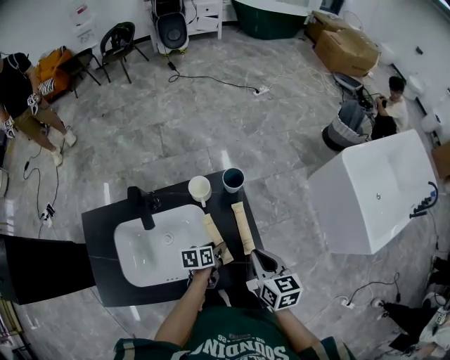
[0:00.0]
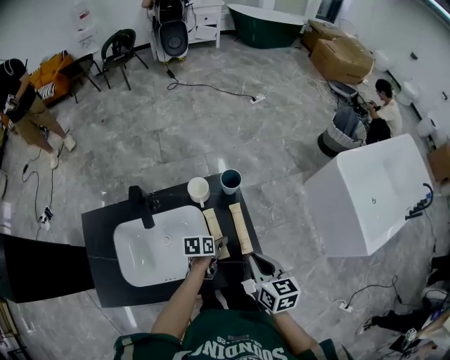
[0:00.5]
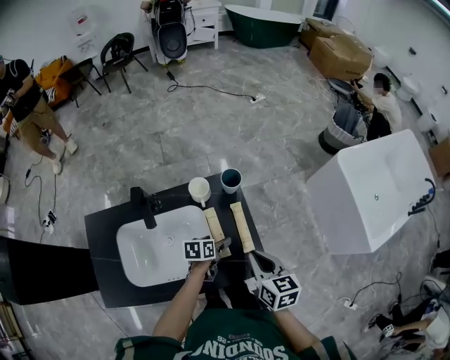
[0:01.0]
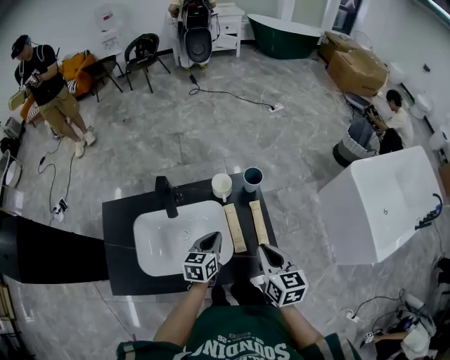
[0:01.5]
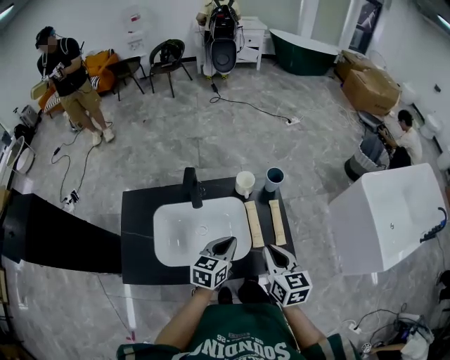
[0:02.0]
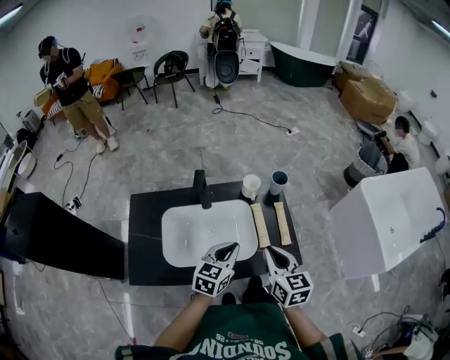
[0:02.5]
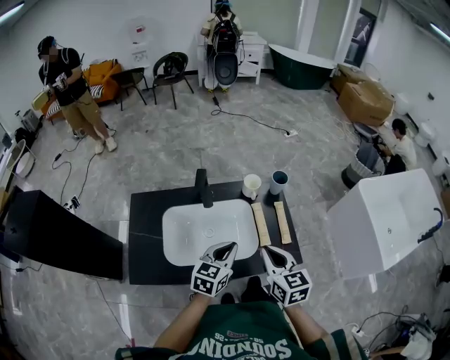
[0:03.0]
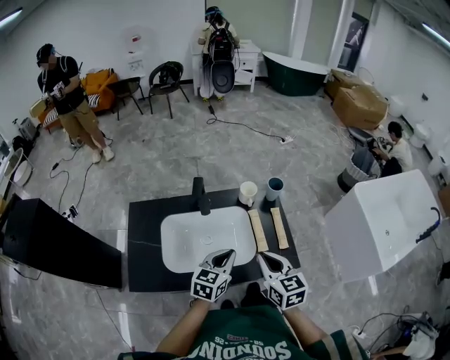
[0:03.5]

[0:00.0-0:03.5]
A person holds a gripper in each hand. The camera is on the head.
0:00.0 to 0:02.0: The left gripper is displaced upward, backward and to the left by some 25 cm, changes its angle by roughly 40 degrees, and closes. Meanwhile the right gripper heads to the left, backward and upward, covering about 15 cm.
0:02.0 to 0:03.5: The right gripper is displaced to the left and backward by roughly 10 cm. The left gripper shifts approximately 5 cm backward.

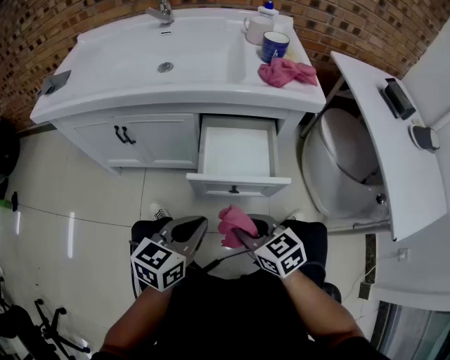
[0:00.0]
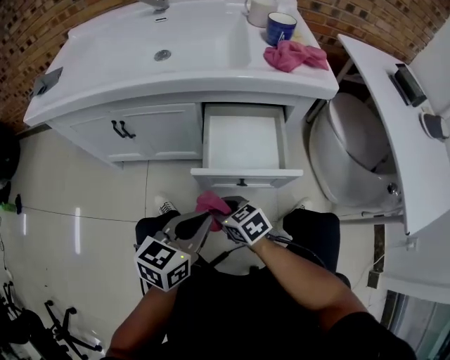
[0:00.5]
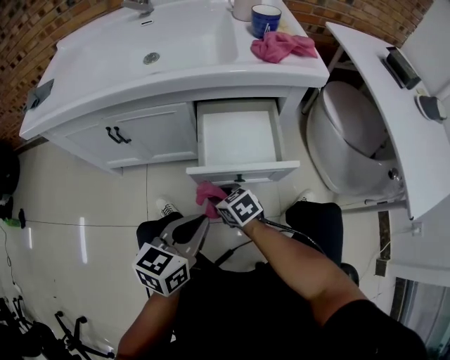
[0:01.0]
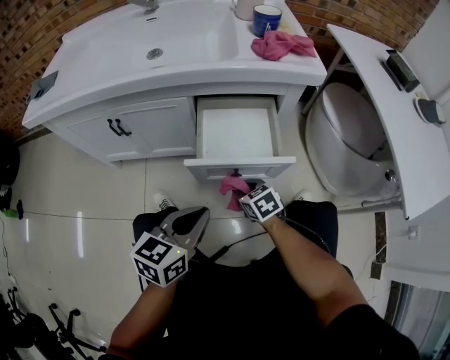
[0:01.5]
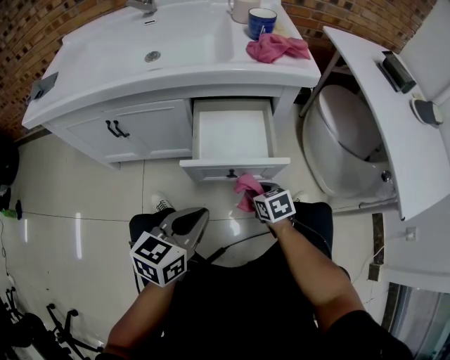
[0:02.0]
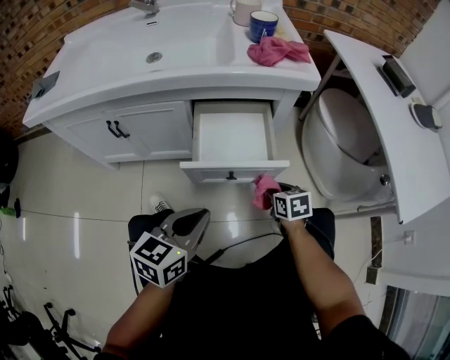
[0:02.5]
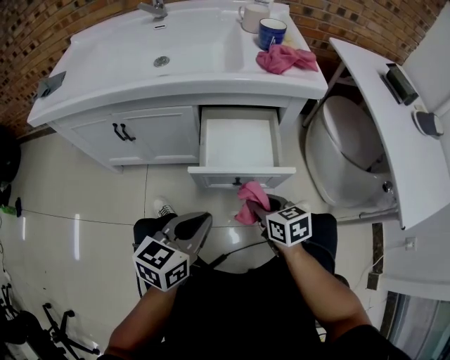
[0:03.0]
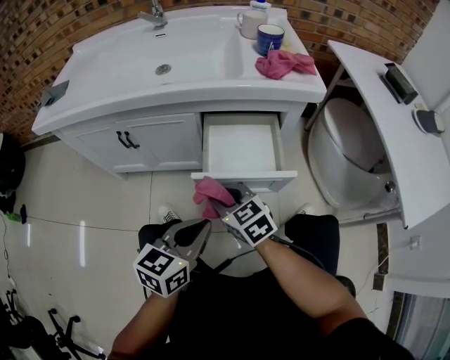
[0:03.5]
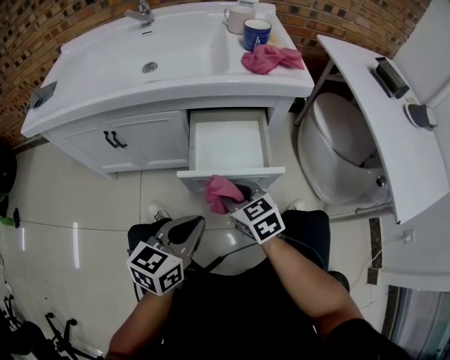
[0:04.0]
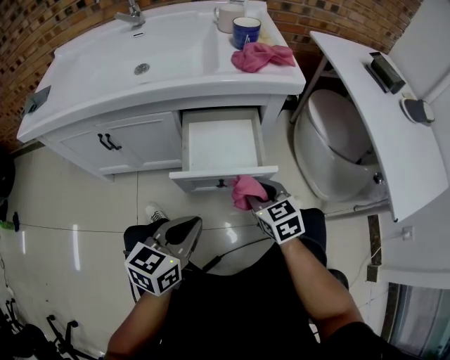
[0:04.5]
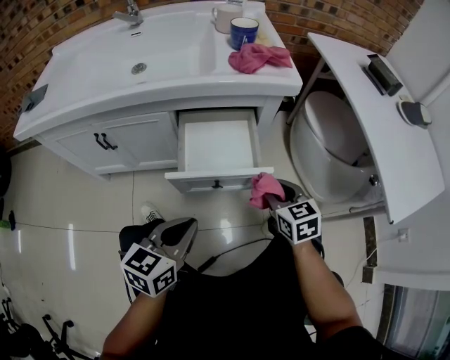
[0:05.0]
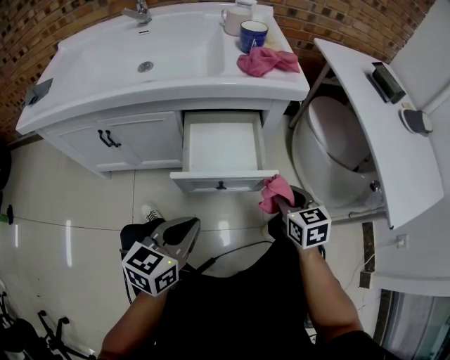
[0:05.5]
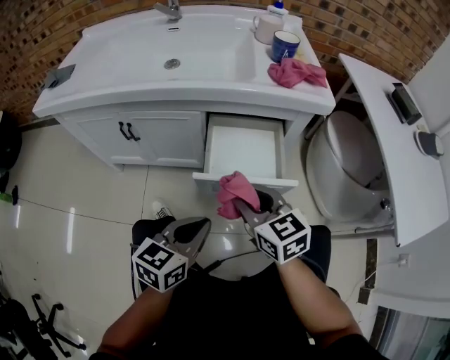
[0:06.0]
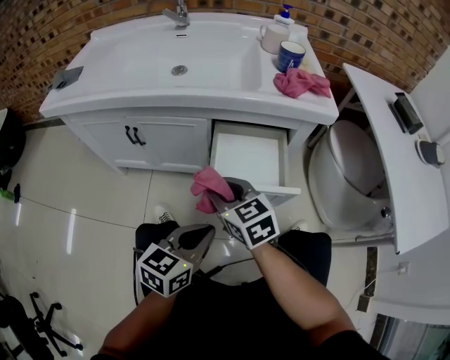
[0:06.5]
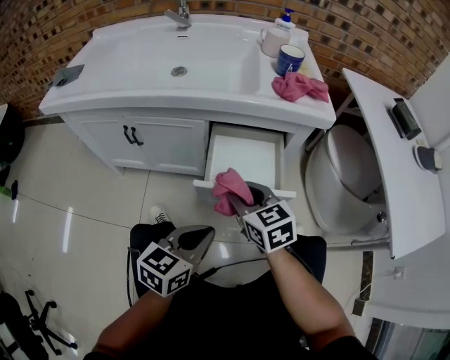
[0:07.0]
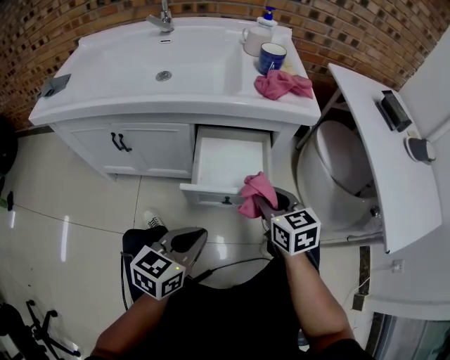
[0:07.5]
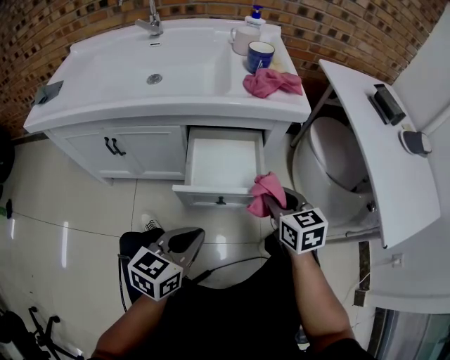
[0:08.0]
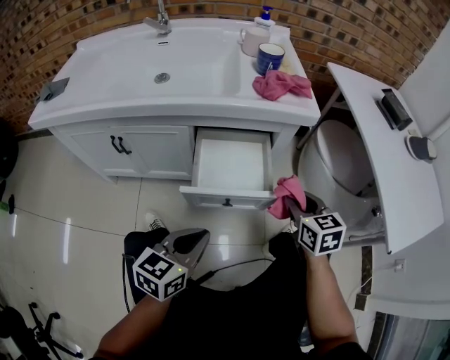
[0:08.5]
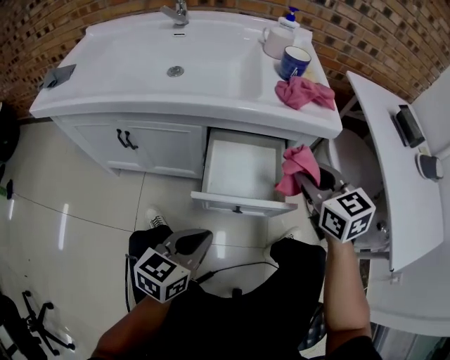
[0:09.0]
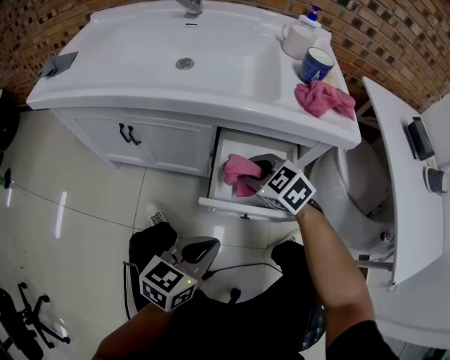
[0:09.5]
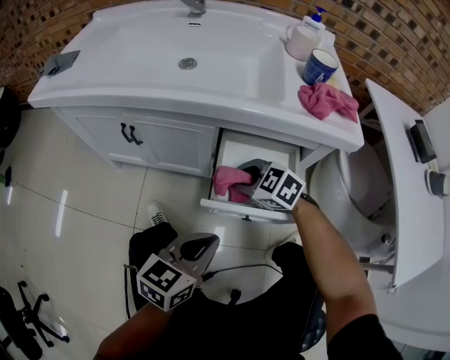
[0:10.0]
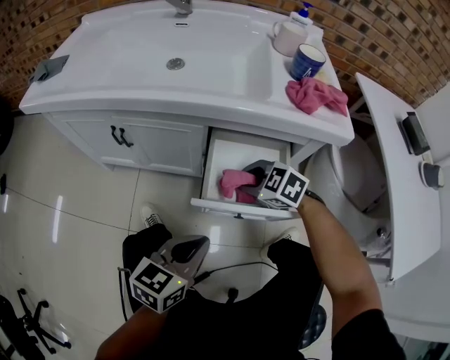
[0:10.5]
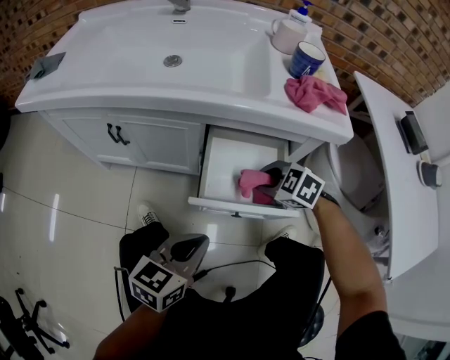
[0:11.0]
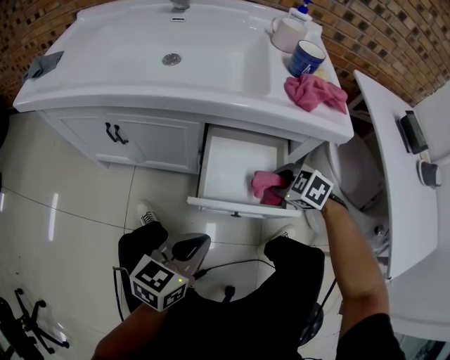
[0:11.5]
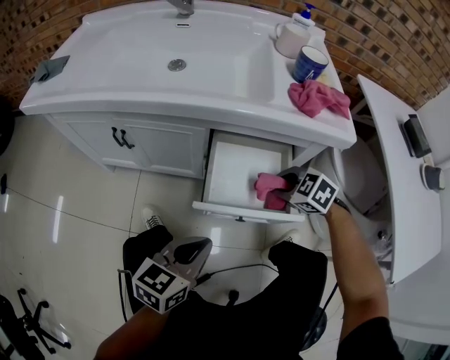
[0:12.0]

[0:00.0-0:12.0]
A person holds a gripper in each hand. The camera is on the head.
0:00.0 to 0:02.0: The right gripper moves downward, forward and to the right, roughly 20 cm, and turns by about 20 degrees.
0:02.0 to 0:04.0: The right gripper moves left and right over some 20 cm, changing direction 2 times, and rotates some 20 degrees.
0:04.0 to 0:06.0: The right gripper heads upward, covering some 10 cm, and reaches some 20 cm to the right, then returns.
0:06.0 to 0:08.0: The right gripper shifts roughly 15 cm to the right.
0:08.0 to 0:10.0: The right gripper changes place by about 25 cm, and swivels approximately 60 degrees. The left gripper moves roughly 5 cm.
0:10.0 to 0:12.0: The right gripper is displaced to the right by roughly 15 cm.

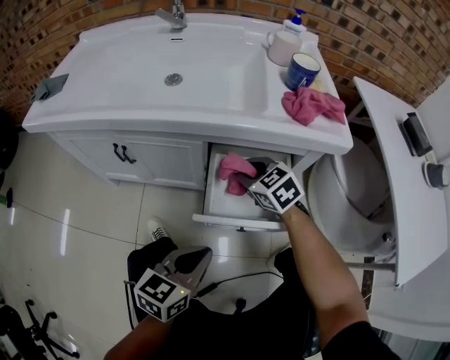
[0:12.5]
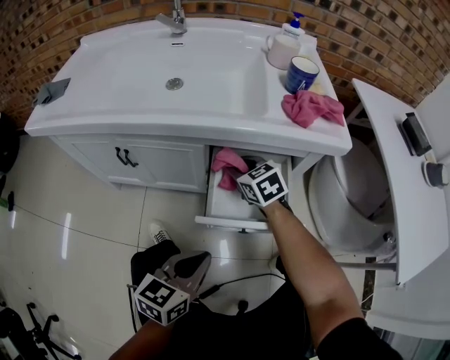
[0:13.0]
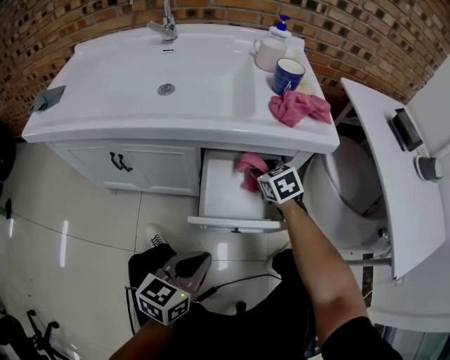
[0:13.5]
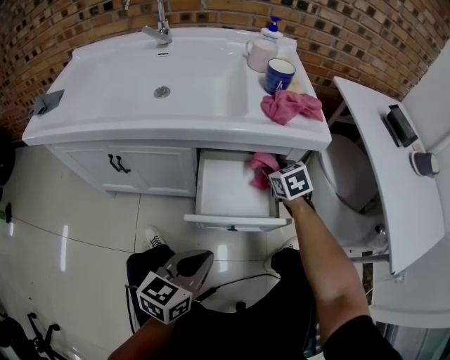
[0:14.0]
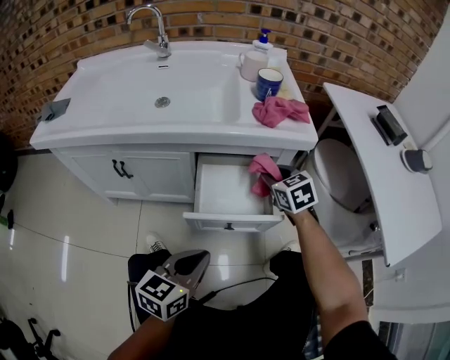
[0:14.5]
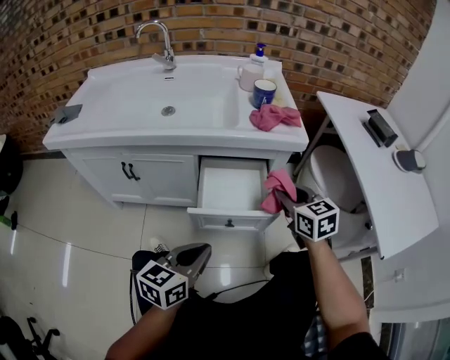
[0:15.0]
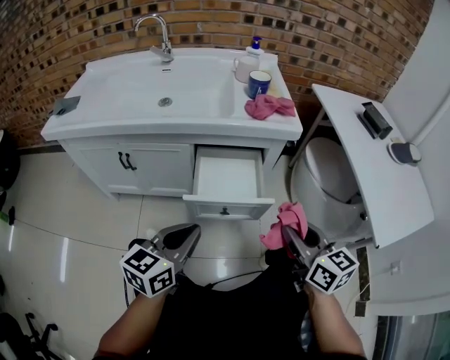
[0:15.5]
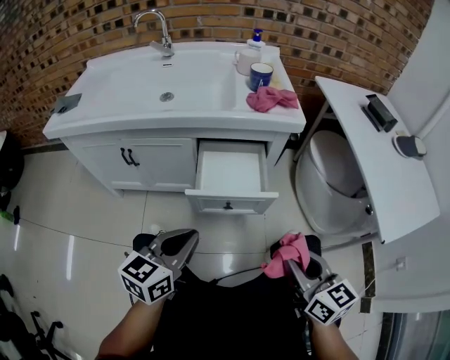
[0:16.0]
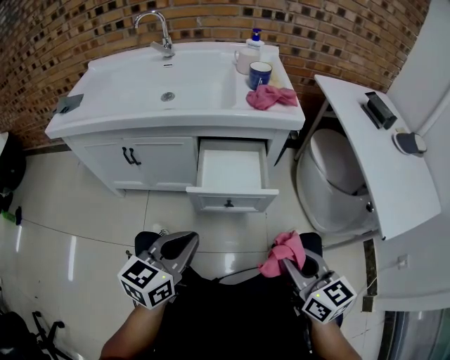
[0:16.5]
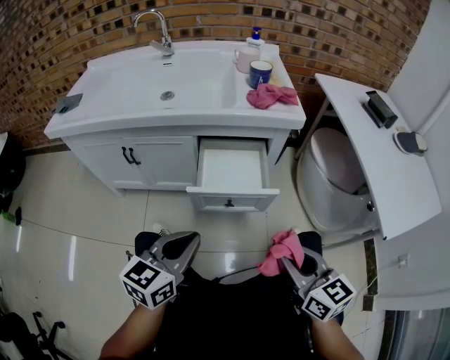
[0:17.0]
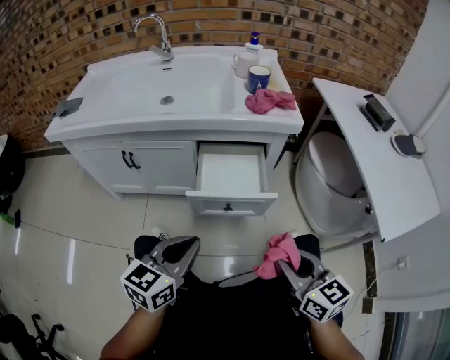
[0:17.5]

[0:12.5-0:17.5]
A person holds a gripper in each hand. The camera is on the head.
0:12.5 to 0:15.0: The right gripper goes roughly 20 cm to the right, upward and backward, and rotates some 30 degrees. The left gripper ends up about 5 cm from where it was.
0:15.0 to 0:17.5: The right gripper is displaced backward by some 25 cm. The left gripper changes place by approximately 5 cm.

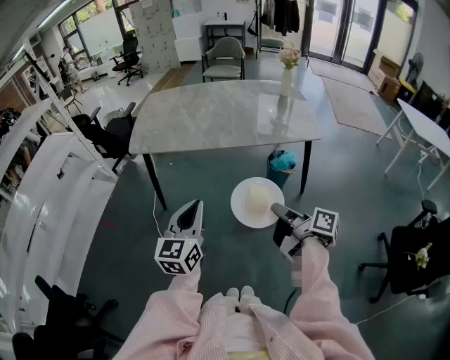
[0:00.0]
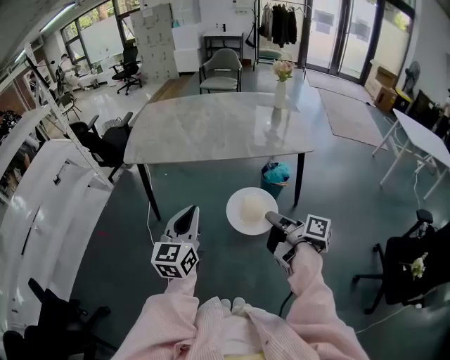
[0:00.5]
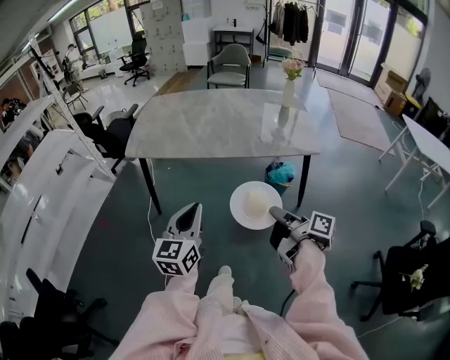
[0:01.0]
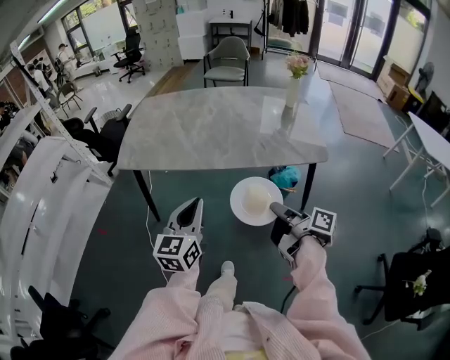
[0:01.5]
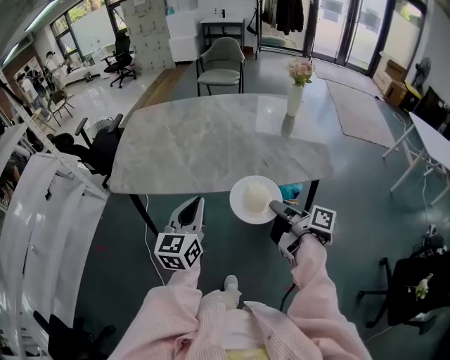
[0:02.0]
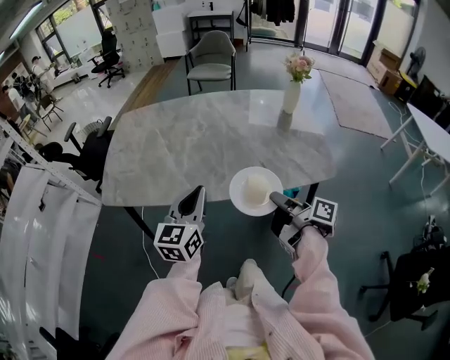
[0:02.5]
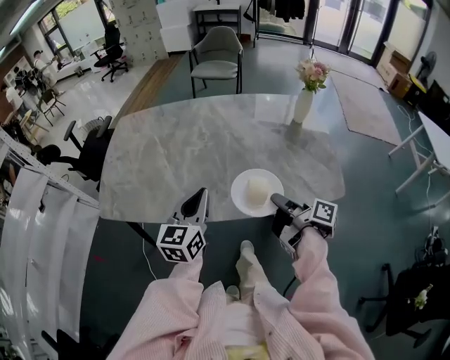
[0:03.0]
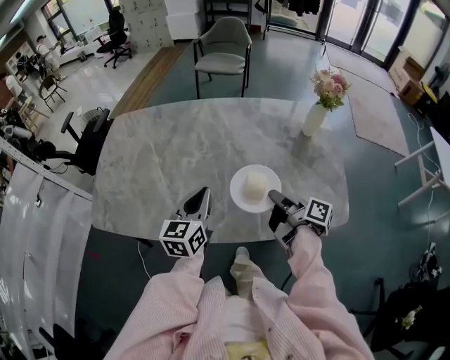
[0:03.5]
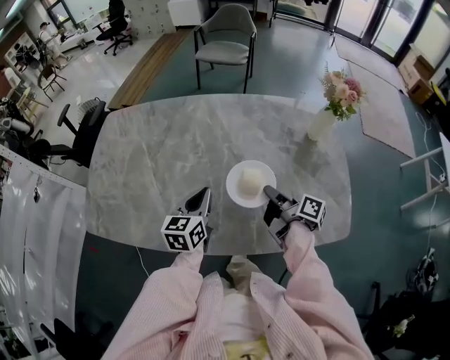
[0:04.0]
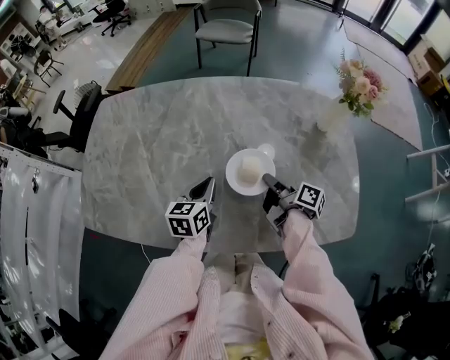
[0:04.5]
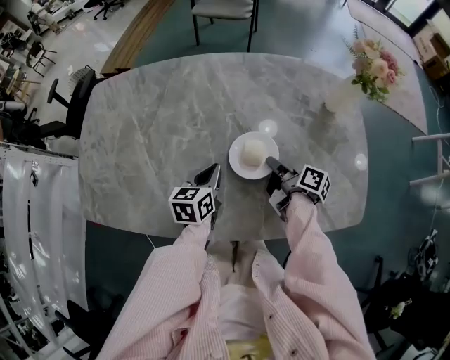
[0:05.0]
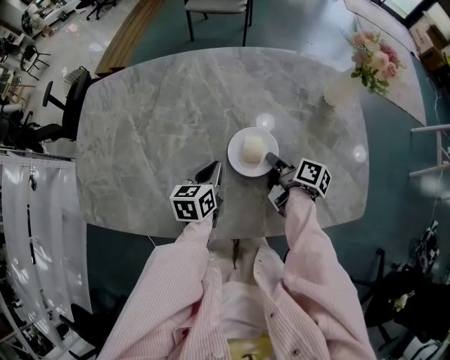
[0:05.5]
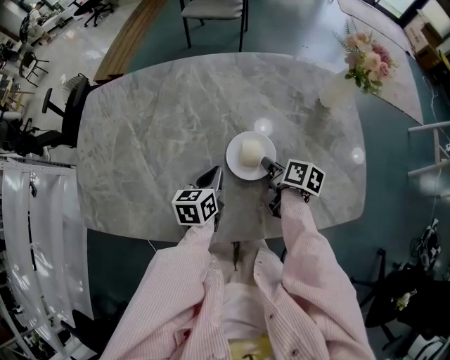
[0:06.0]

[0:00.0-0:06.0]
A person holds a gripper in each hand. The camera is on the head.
0:00.0 to 0:02.0: Both grippers travel together forward, approximately 30 cm.
0:02.0 to 0:04.0: The grippers both shift forward by about 35 cm.
0:04.0 to 0:06.0: The grippers both shift downward by about 10 cm. The right gripper turns by about 30 degrees.
